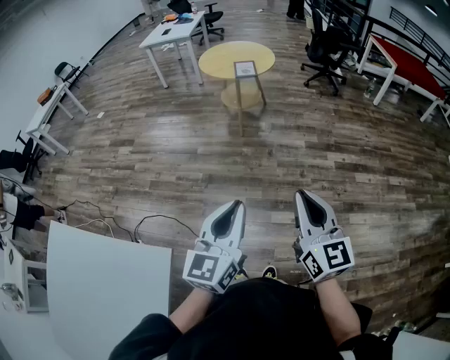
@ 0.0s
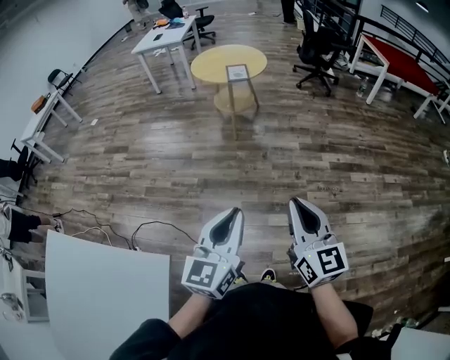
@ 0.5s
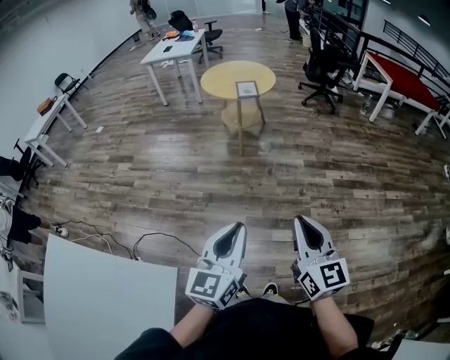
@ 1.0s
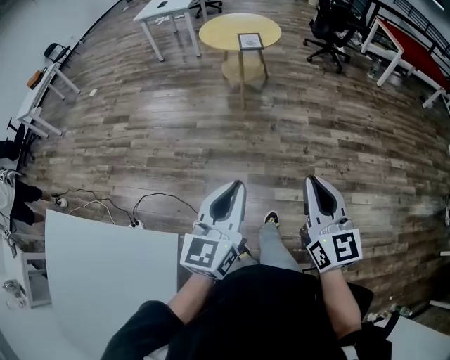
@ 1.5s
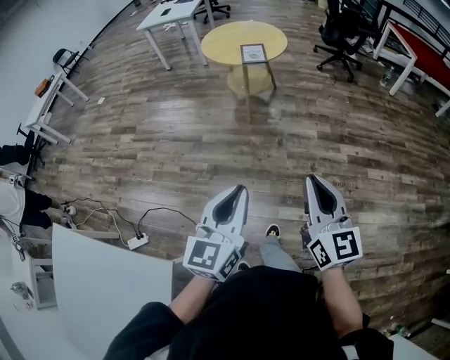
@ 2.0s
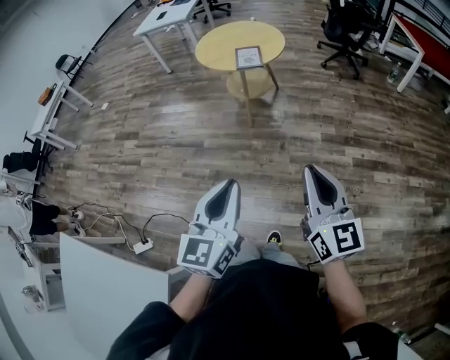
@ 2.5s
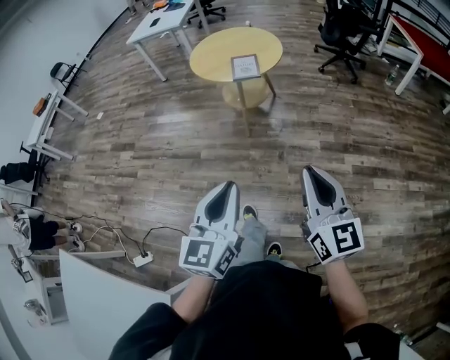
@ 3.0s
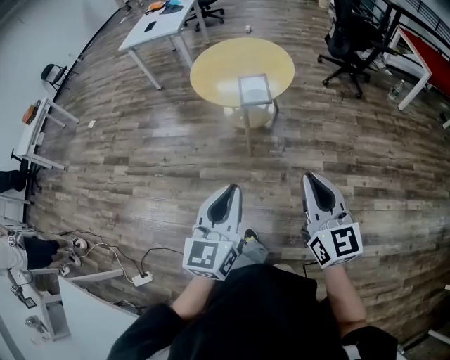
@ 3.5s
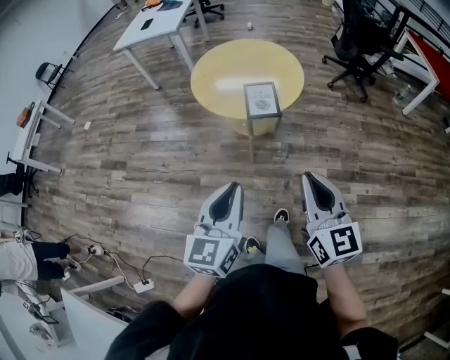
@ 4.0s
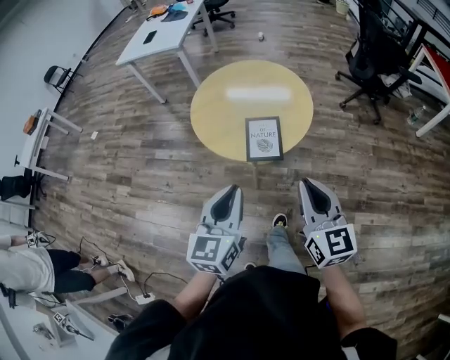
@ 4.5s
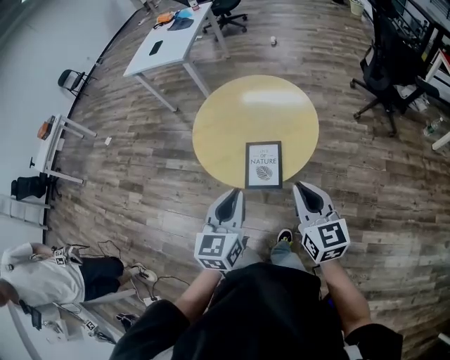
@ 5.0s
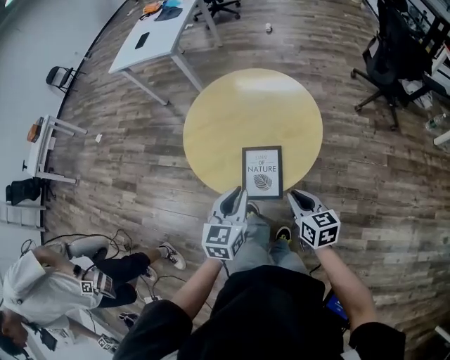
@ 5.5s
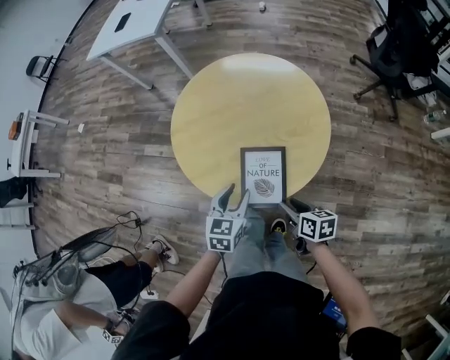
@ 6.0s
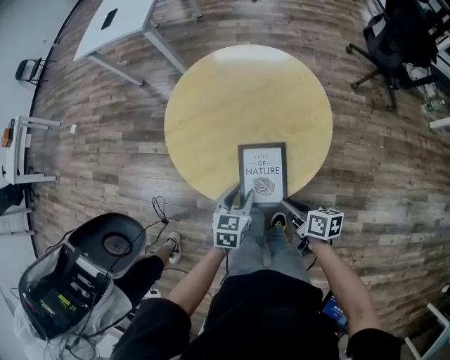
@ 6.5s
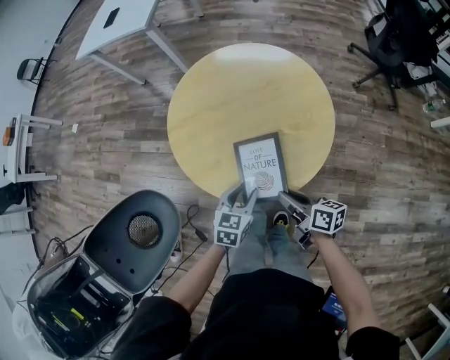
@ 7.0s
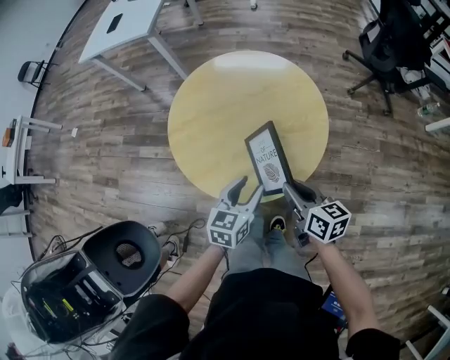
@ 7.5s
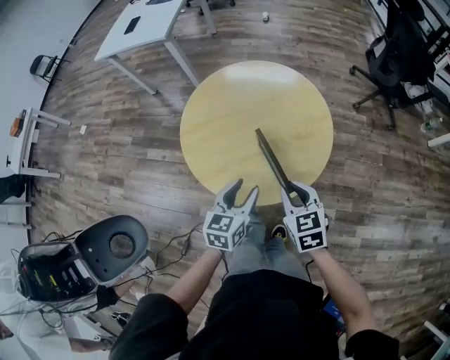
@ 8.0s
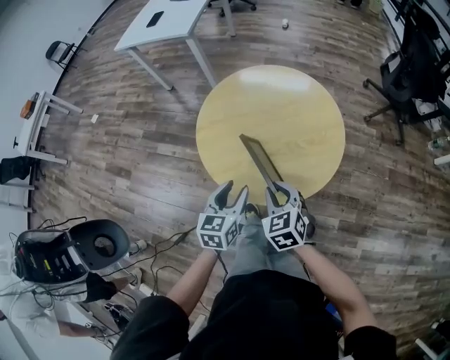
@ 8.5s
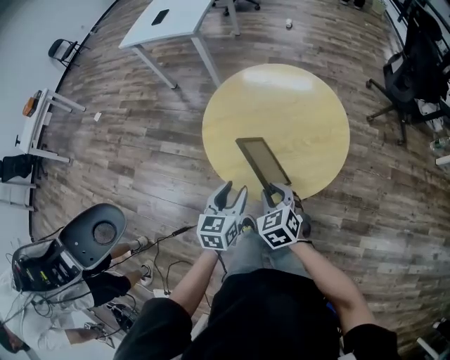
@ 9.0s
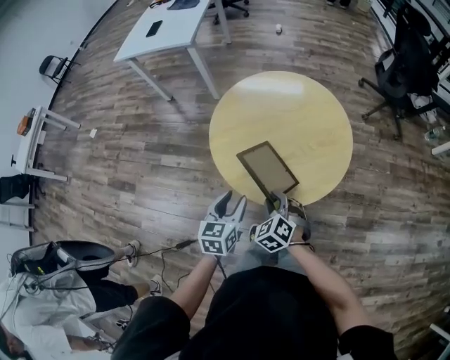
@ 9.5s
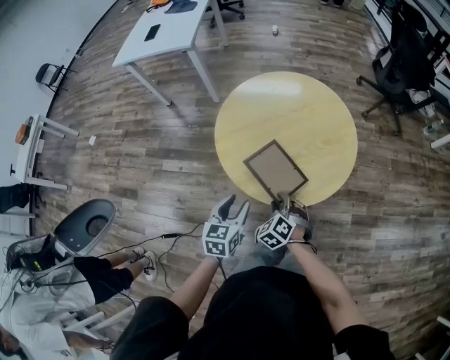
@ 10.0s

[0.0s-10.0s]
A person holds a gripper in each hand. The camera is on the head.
0.0s to 2.0s: Both grippers move forward, roughly 15 cm.
2.0s to 4.0s: Both grippers are carried forward, roughly 50 cm.
4.0s to 6.0s: The two grippers travel together, forward, roughly 40 cm. The two grippers go about 30 cm downward. The right gripper tilts its fingers about 40 degrees downward, and opens its fingers. Meanwhile the left gripper swivels roughly 30 degrees, and opens up.
6.0s to 8.0s: The right gripper heads upward and forward, covering some 15 cm, rotates roughly 40 degrees, and closes its fingers. The left gripper is displaced upward by approximately 5 cm.
8.0s to 10.0s: The left gripper is displaced to the left by about 20 cm. The right gripper goes some 20 cm to the left and downward, and swivels some 40 degrees.

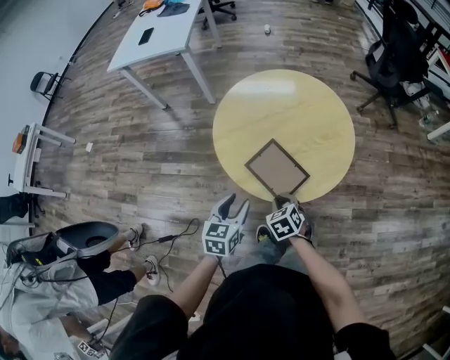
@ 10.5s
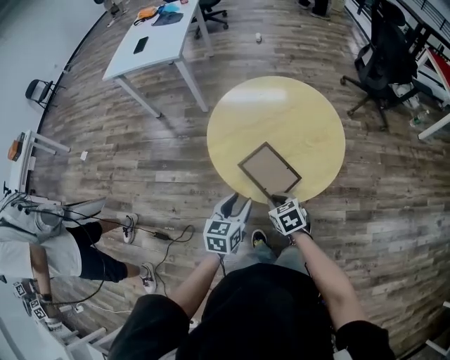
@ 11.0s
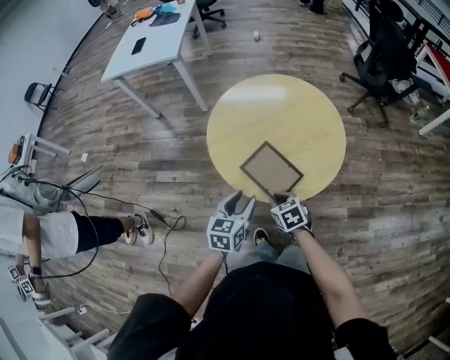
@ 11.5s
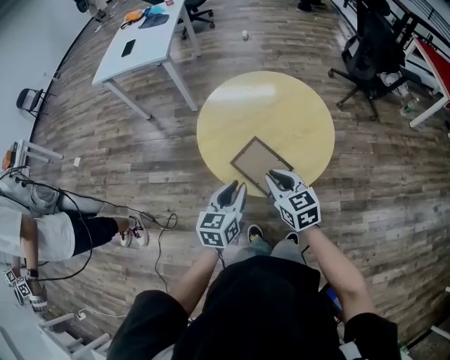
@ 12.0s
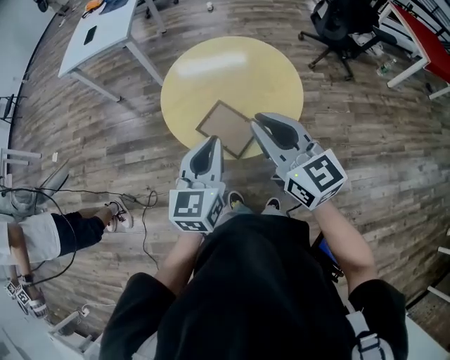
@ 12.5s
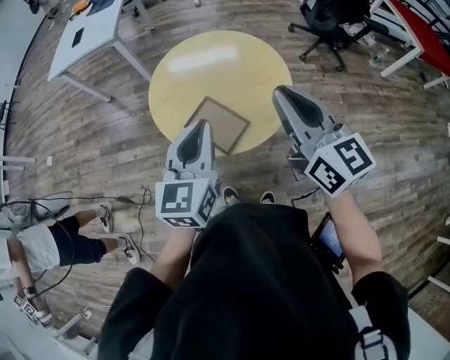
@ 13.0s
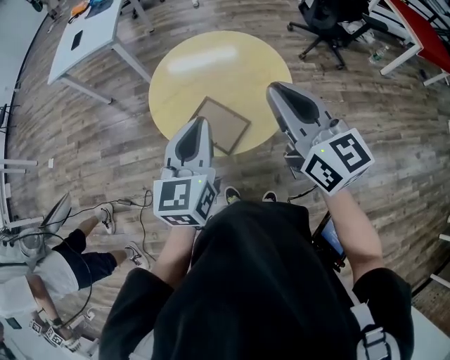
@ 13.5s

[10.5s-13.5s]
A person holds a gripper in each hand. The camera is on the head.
10.5s to 12.0s: The right gripper goes some 15 cm upward, and angles its fingers upward, by some 30 degrees. Meanwhile the left gripper is displaced upward by approximately 5 cm.
12.0s to 13.5s: The grippers both shift upward and to the right by approximately 20 cm. The right gripper swivels about 30 degrees.

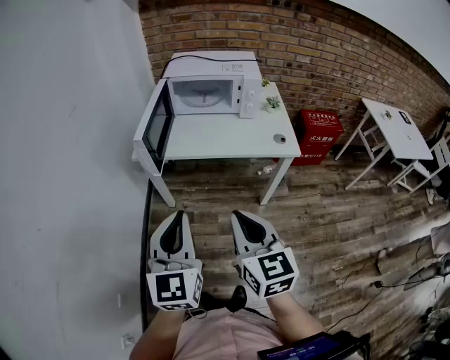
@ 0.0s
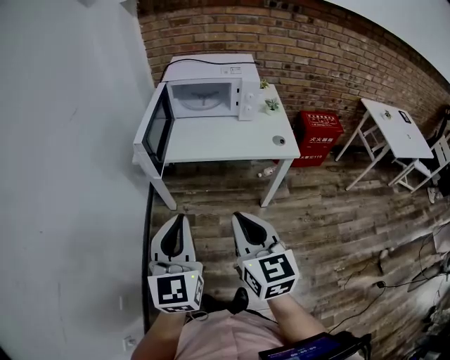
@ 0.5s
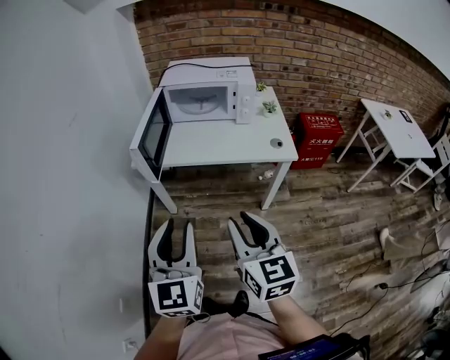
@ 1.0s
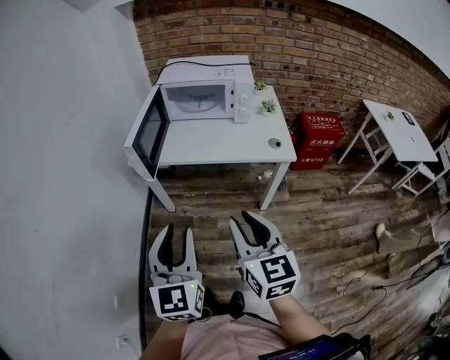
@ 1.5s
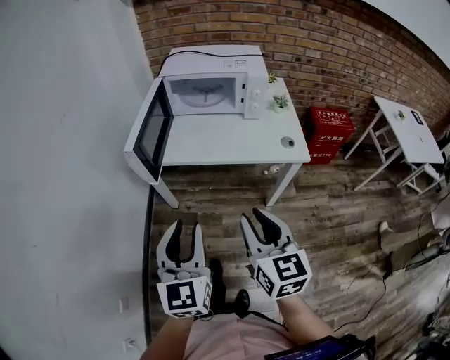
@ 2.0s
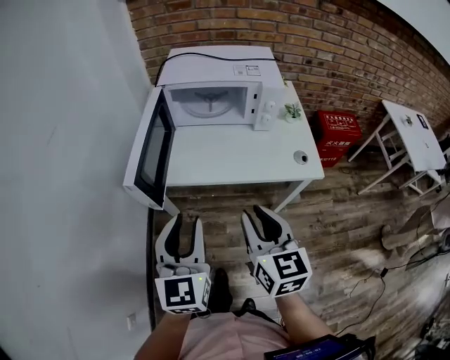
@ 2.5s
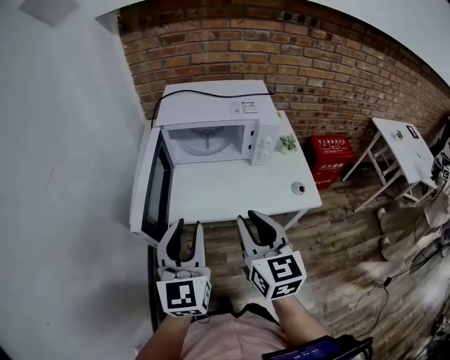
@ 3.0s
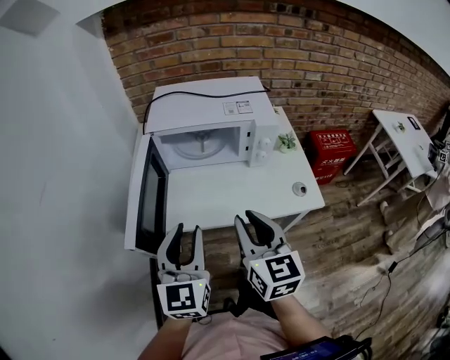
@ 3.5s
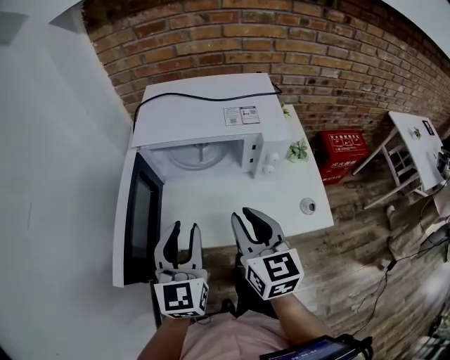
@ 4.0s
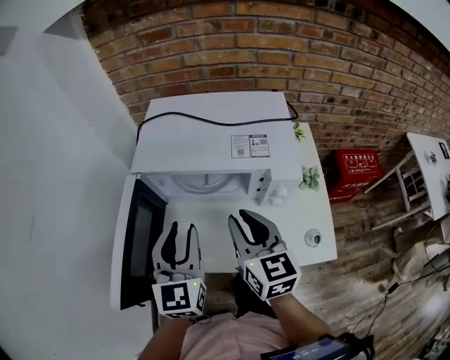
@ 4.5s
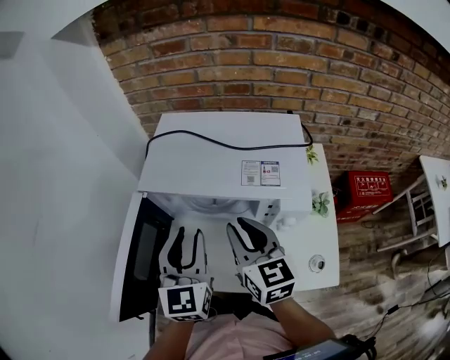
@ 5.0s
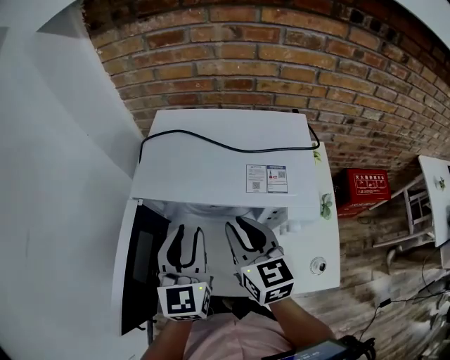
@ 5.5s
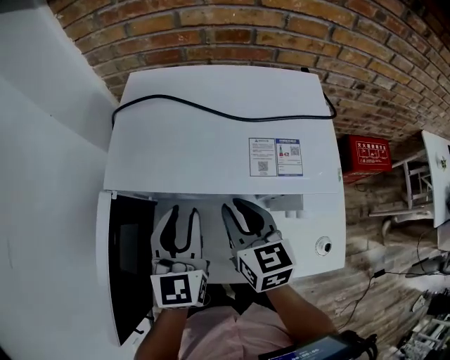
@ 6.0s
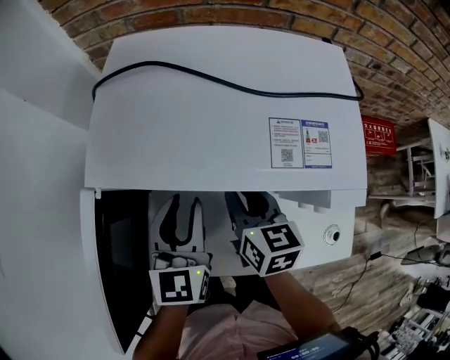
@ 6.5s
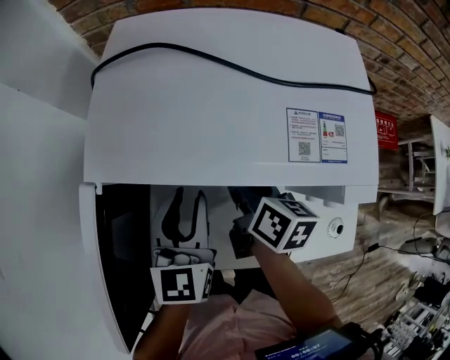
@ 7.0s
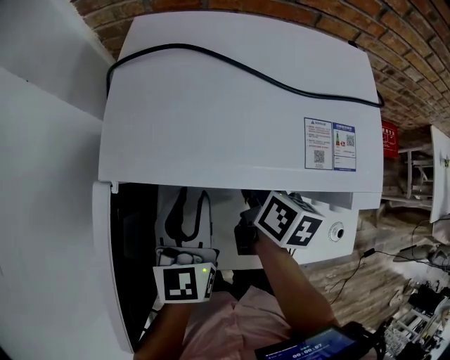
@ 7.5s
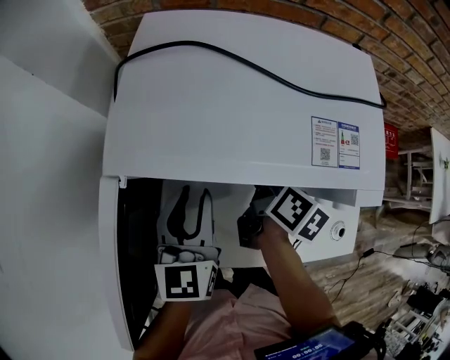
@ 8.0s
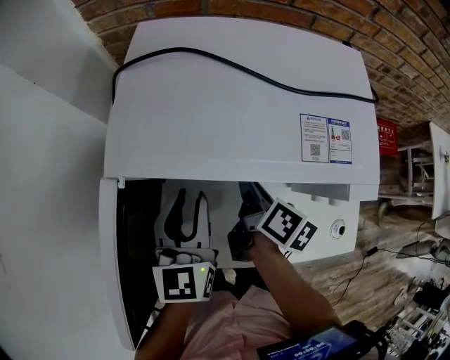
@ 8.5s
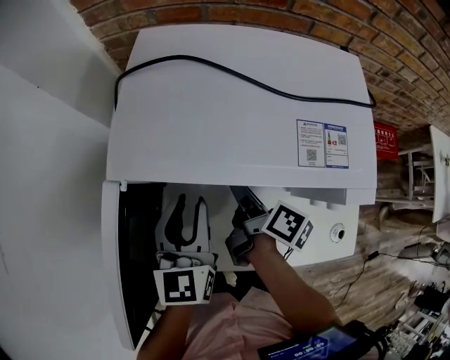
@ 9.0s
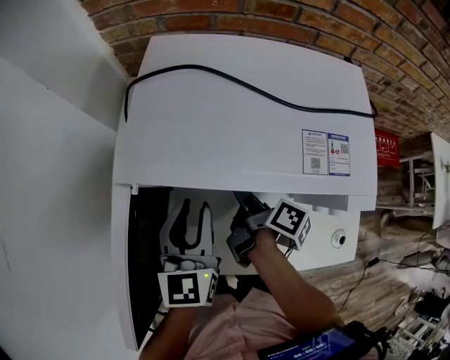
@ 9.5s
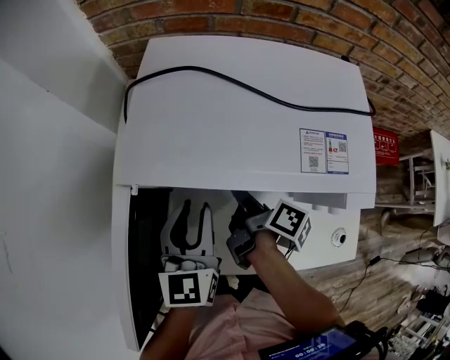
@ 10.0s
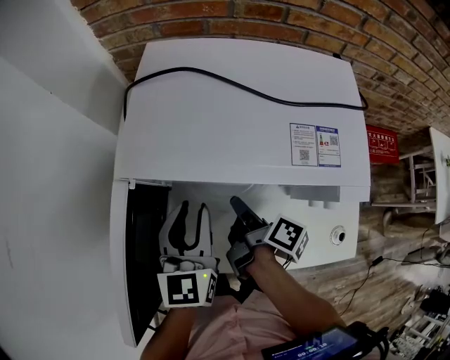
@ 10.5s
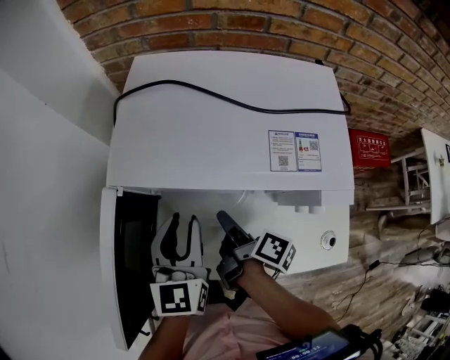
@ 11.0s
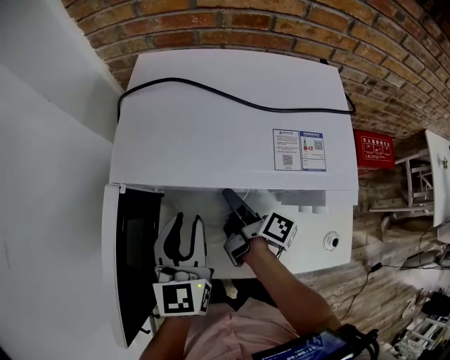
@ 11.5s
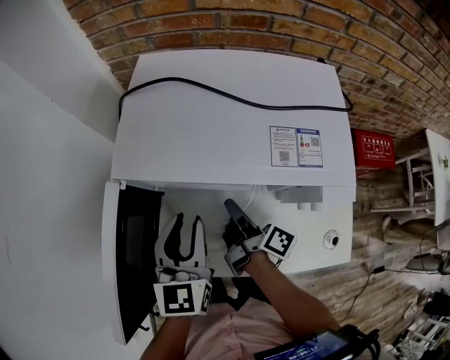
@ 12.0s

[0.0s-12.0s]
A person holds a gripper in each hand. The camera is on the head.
0.0s to 2.0s: The right gripper goes some 10 cm forward and to the right; the left gripper ends up approximately 5 cm from where it was, and opens up.
2.0s to 4.0s: The two grippers go some 35 cm forward.
4.0s to 6.0s: The right gripper travels forward and downward by approximately 20 cm. The left gripper heads forward, covering about 20 cm.
6.0s to 8.0s: The left gripper moves some 5 cm. The right gripper travels downward by roughly 10 cm, and twists approximately 40 degrees clockwise, seen from behind.
8.0s to 10.0s: The right gripper heads to the left, covering some 5 cm, turns by approximately 30 degrees, and opens and closes again.
10.0s to 12.0s: The right gripper opens and closes again.

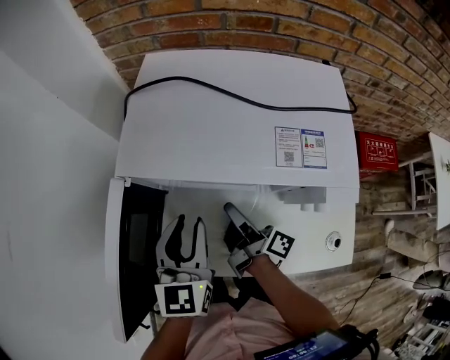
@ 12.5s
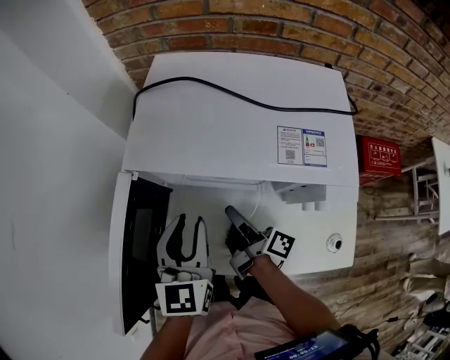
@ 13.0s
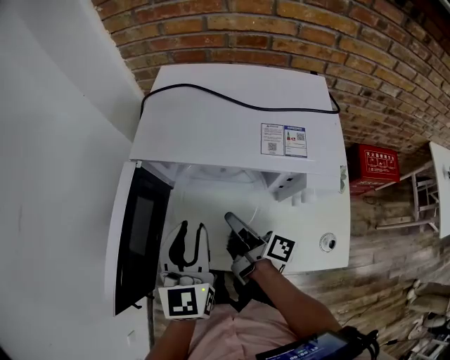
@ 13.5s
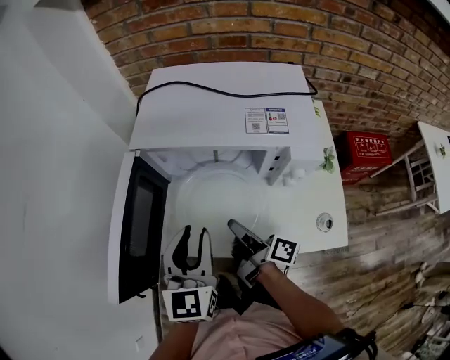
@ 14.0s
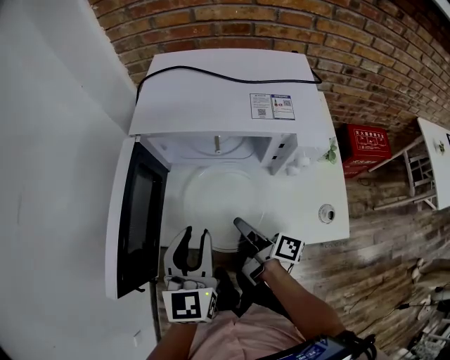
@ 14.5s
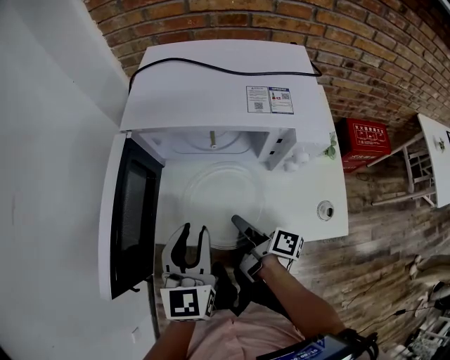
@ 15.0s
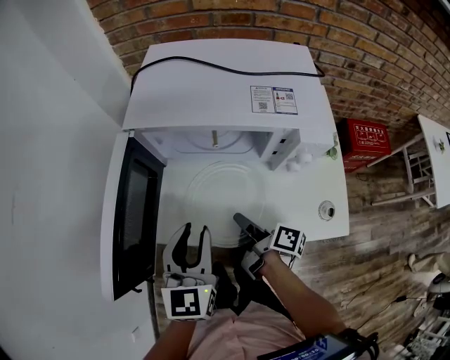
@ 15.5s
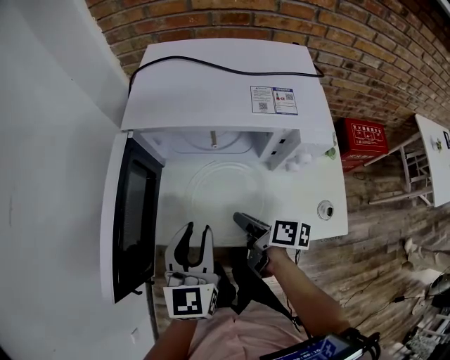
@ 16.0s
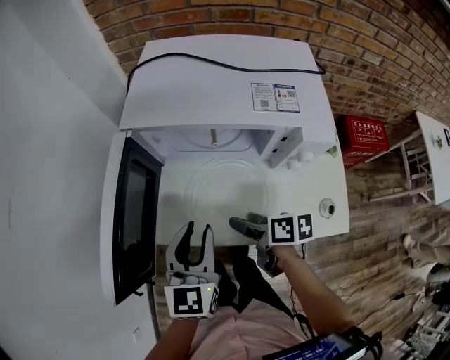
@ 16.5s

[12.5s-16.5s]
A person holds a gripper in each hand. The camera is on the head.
12.5s to 14.5s: The two grippers go approximately 15 cm backward. The right gripper closes its fingers.
14.5s to 16.5s: The right gripper rotates approximately 40 degrees, and opens up.
